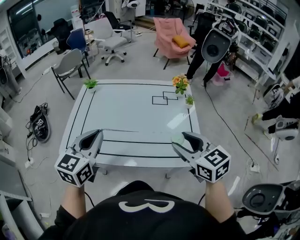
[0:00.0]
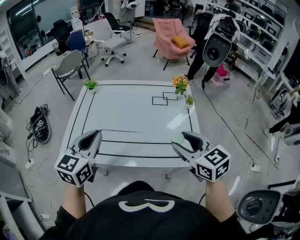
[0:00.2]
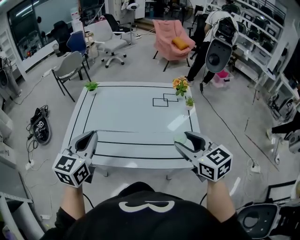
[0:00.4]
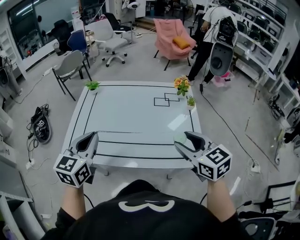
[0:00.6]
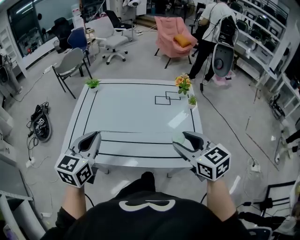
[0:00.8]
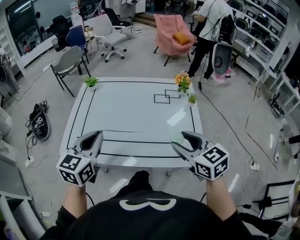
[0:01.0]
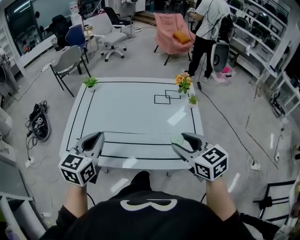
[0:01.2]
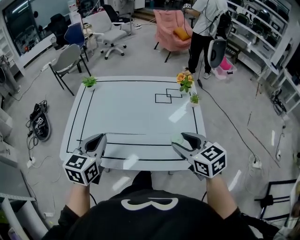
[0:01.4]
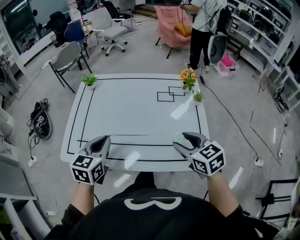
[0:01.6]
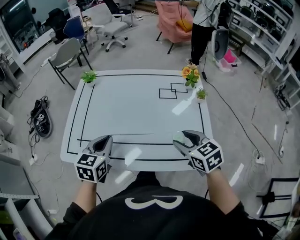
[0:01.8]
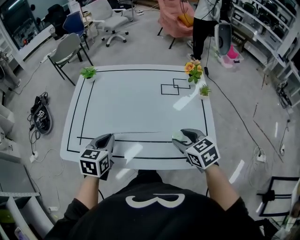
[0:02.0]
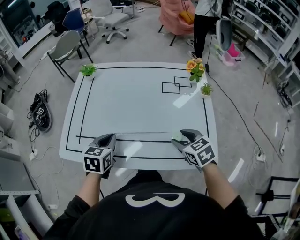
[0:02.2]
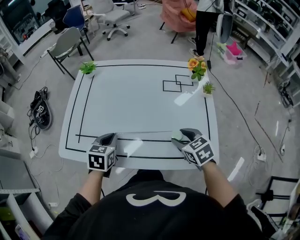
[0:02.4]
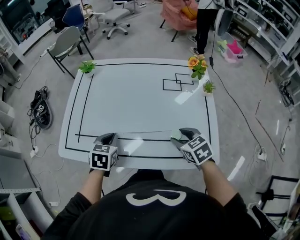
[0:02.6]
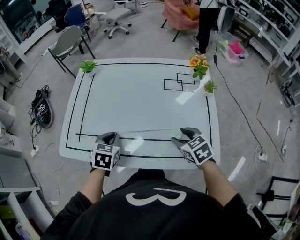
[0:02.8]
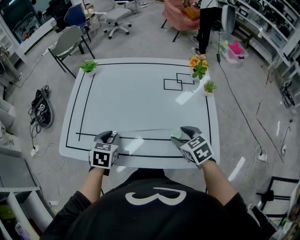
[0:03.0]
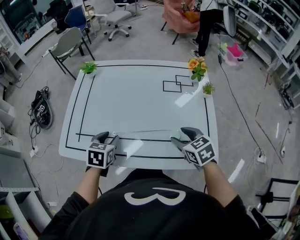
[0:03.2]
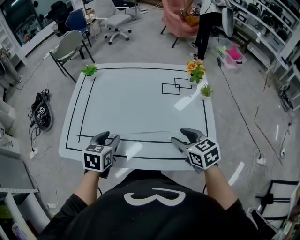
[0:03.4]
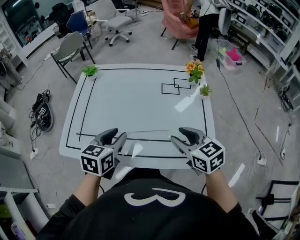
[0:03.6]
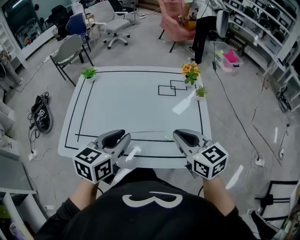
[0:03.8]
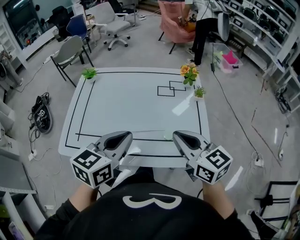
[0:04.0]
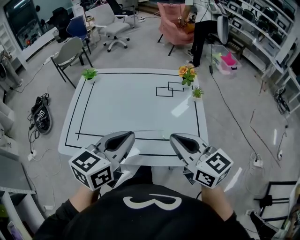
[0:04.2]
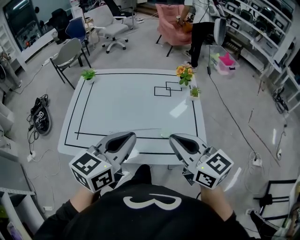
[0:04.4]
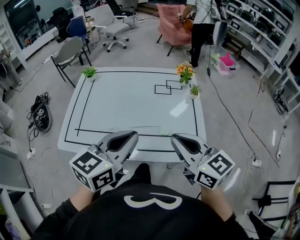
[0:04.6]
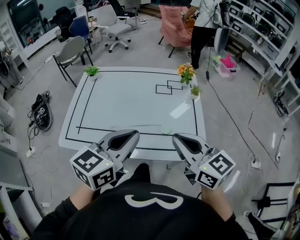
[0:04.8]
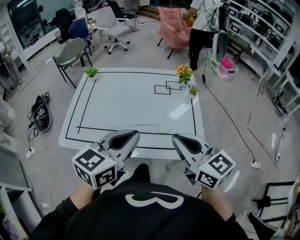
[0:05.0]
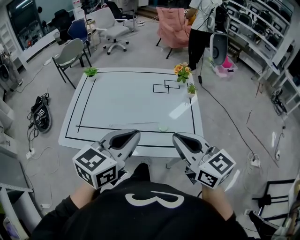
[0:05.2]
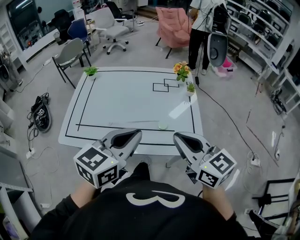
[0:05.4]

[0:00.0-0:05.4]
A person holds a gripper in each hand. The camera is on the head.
0:00.0 to 0:01.4: The grippers both shift downward by approximately 5 cm.
0:01.4 to 0:02.8: Both grippers travel together downward, roughly 15 cm. The left gripper swivels about 30 degrees.
0:02.8 to 0:04.0: The left gripper travels upward and to the right by about 25 cm, tilts its fingers approximately 30 degrees upward, and opens, then closes once more. The right gripper is displaced upward by some 20 cm, angles its fingers upward, by about 40 degrees, and closes up.
0:04.0 to 0:05.4: The grippers both shift backward by some 10 cm.

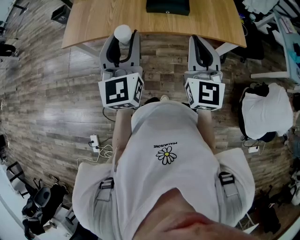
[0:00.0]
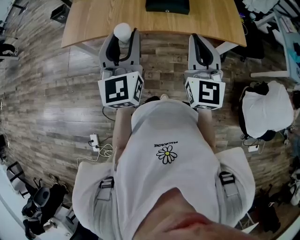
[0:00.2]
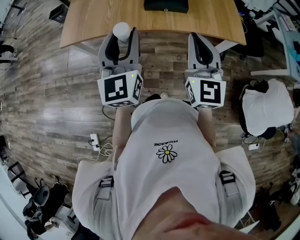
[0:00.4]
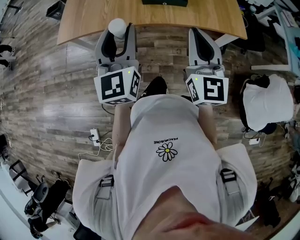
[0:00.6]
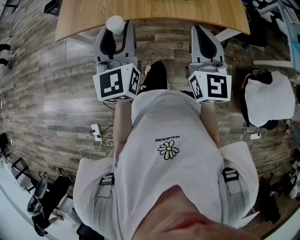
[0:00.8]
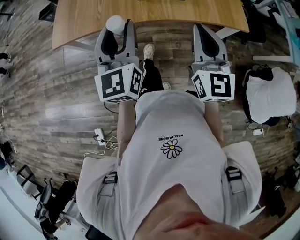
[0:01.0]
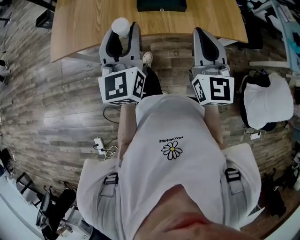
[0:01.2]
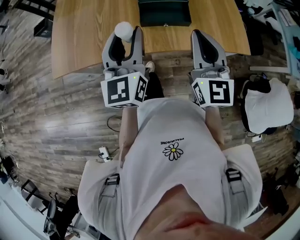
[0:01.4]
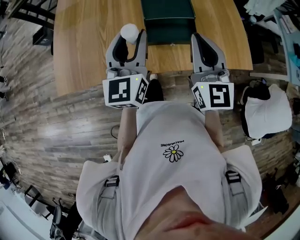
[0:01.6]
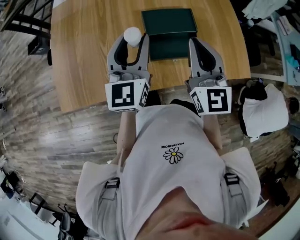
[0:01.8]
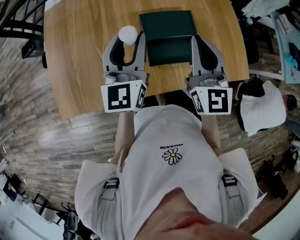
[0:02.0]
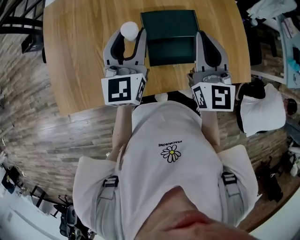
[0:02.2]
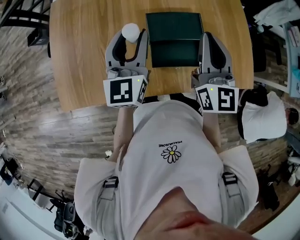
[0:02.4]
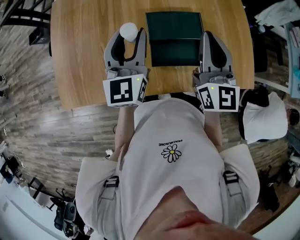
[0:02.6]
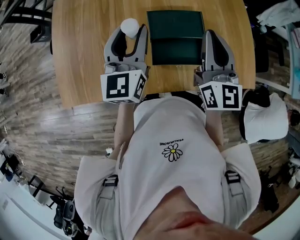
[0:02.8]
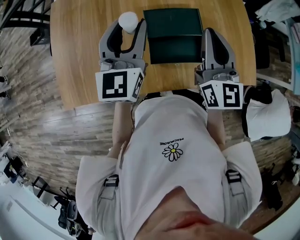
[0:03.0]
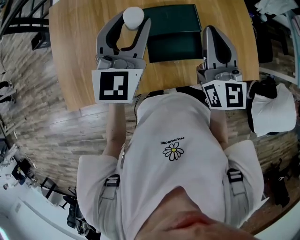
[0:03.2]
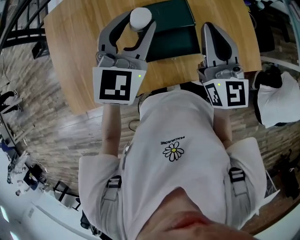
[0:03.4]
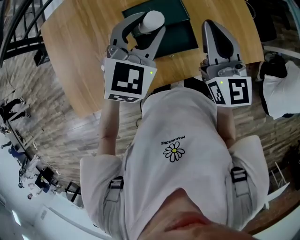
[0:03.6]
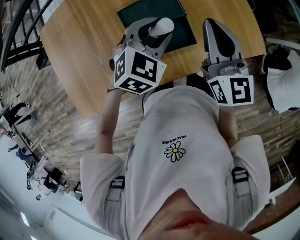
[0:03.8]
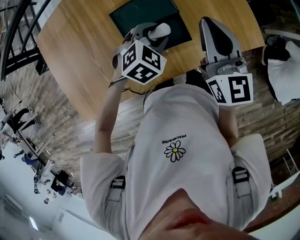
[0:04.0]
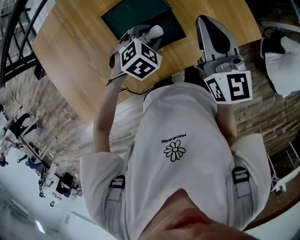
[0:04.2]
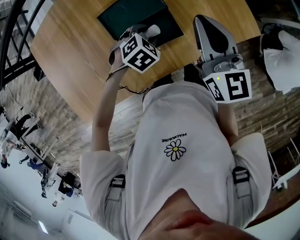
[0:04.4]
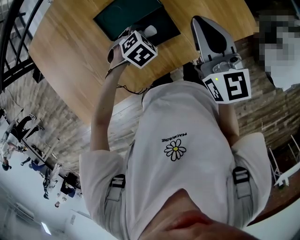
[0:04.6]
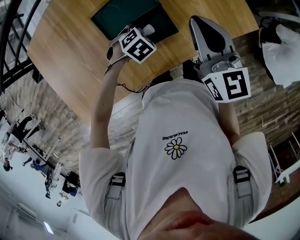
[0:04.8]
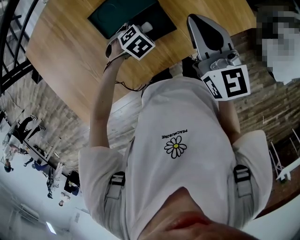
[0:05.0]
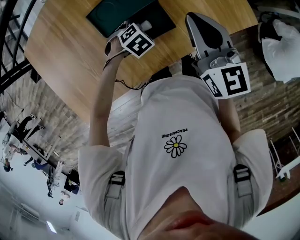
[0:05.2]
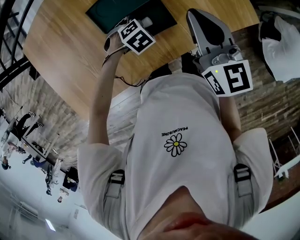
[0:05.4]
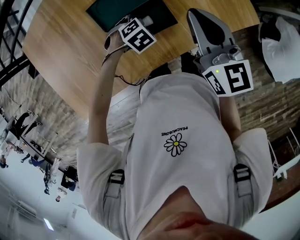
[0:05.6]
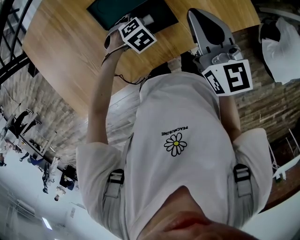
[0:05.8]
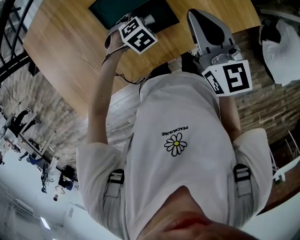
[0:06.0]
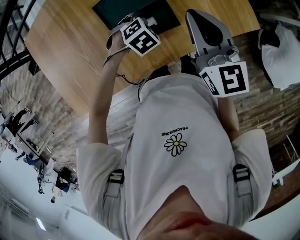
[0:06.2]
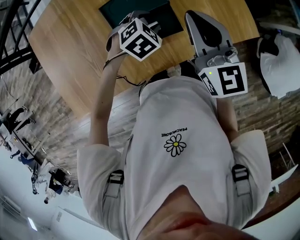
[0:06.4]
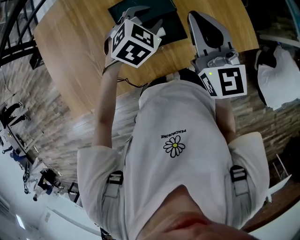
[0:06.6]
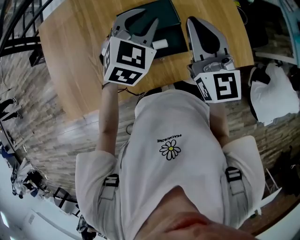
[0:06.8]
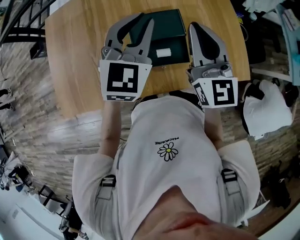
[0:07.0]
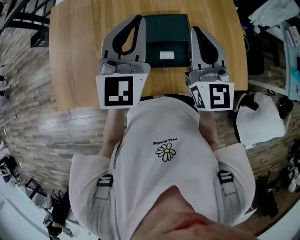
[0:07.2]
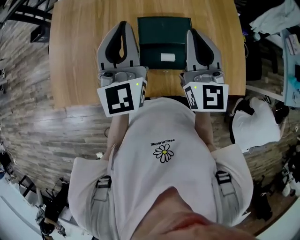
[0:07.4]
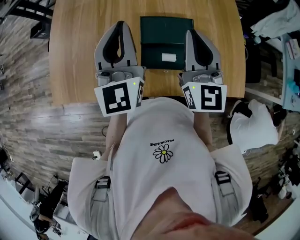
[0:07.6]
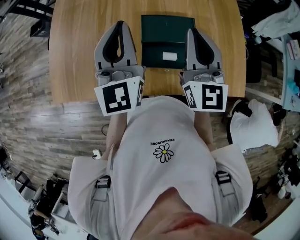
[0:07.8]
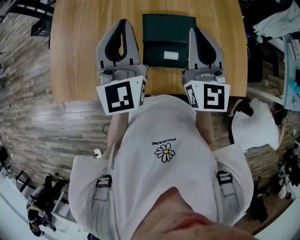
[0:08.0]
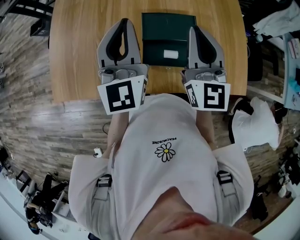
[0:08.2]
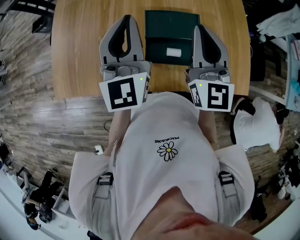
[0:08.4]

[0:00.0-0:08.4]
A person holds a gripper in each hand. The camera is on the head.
0:00.0 to 0:01.4: Both grippers travel together forward, about 15 cm.
0:01.4 to 0:02.8: The grippers both shift forward by about 25 cm.
0:02.8 to 0:04.2: The left gripper is displaced downward by about 20 cm, and tilts its fingers some 60 degrees downward. The right gripper ends up about 15 cm from where it was.
0:04.2 to 0:05.6: The left gripper is displaced downward by about 10 cm.
0:05.6 to 0:07.0: The left gripper is displaced upward by approximately 35 cm, angles its fingers upward, by some 60 degrees, and closes. The right gripper is displaced upward by some 10 cm, and swivels some 20 degrees.
0:07.0 to 0:08.4: The left gripper moves to the left, roughly 10 cm, and swivels about 40 degrees. The right gripper travels to the left by some 5 cm.

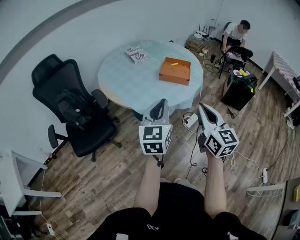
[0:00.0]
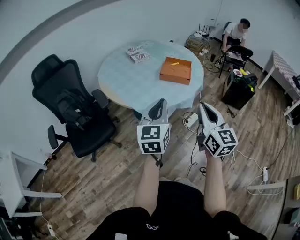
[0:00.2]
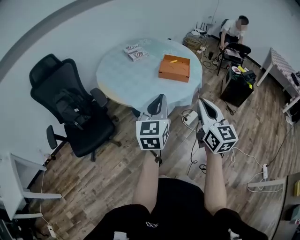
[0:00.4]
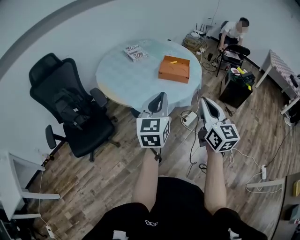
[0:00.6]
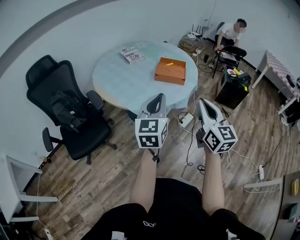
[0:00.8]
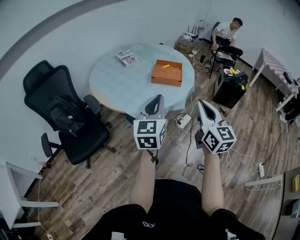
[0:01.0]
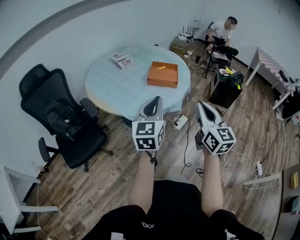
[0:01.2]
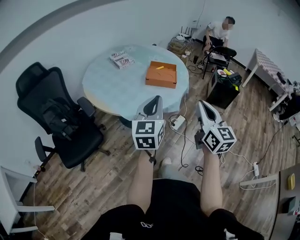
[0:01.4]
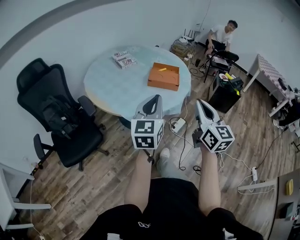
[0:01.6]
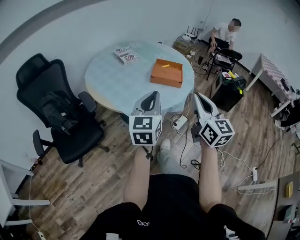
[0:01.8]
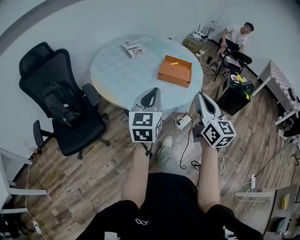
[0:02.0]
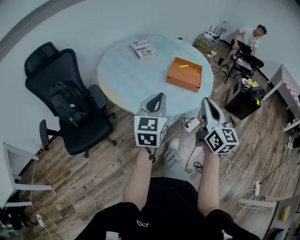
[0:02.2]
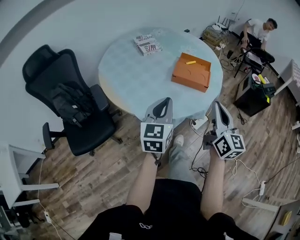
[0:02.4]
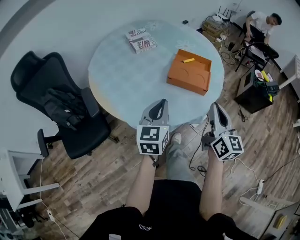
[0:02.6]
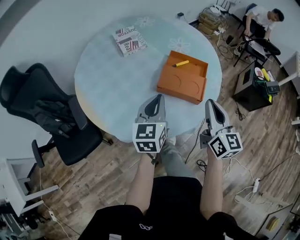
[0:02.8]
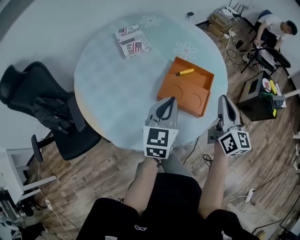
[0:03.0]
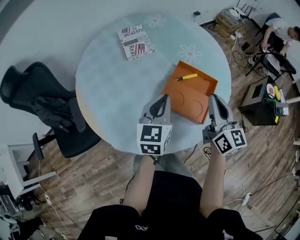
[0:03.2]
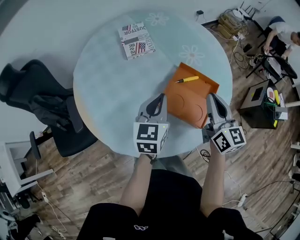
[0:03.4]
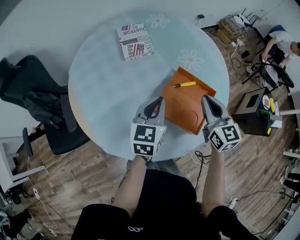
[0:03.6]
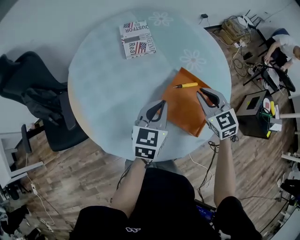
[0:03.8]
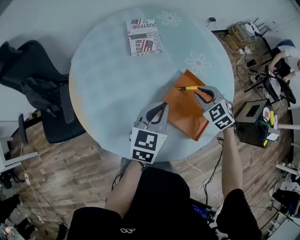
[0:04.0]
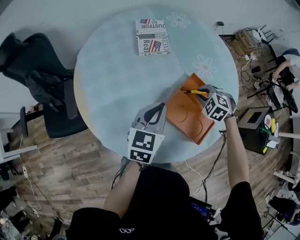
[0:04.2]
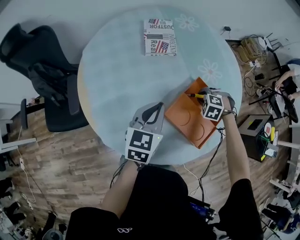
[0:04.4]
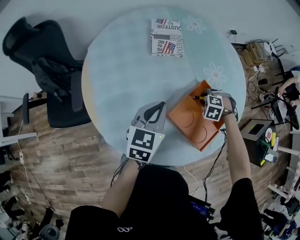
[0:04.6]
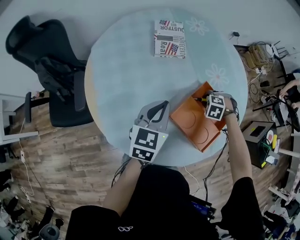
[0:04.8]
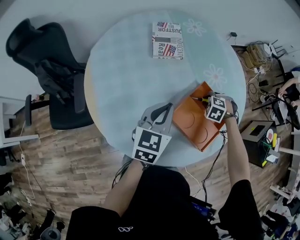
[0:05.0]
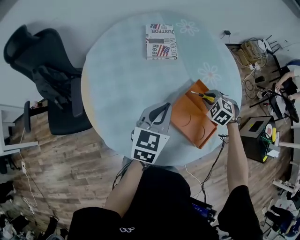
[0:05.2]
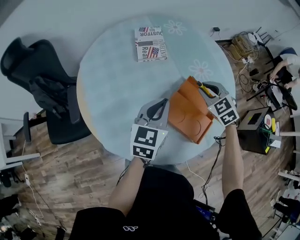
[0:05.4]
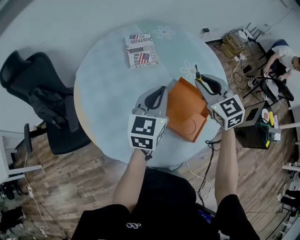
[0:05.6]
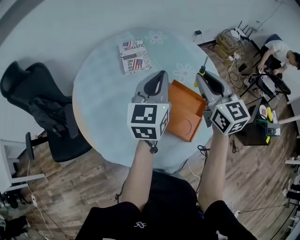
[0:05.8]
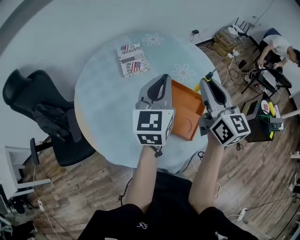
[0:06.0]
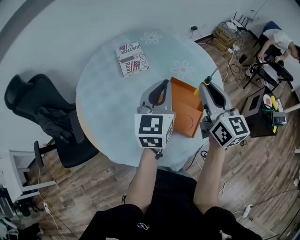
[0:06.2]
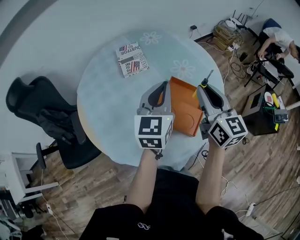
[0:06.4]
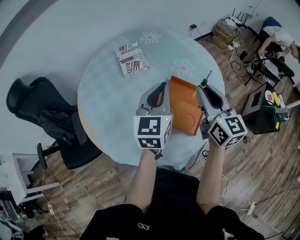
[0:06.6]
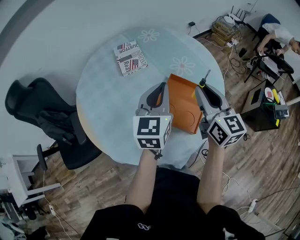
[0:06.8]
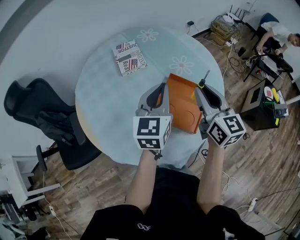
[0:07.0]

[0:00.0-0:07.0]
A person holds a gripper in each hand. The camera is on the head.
0:00.0 to 0:01.4: The grippers stay close to where they were, moving slightly.
0:01.4 to 0:02.8: The right gripper shifts roughly 40 cm forward; the left gripper heads forward and downward, covering approximately 40 cm.
0:02.8 to 0:04.2: The left gripper goes approximately 15 cm forward; the right gripper moves forward and downward, some 35 cm, and angles its fingers downward, by about 60 degrees.
0:04.2 to 0:05.6: The left gripper is displaced upward by some 10 cm. The right gripper heads upward, covering roughly 20 cm, and tilts its fingers approximately 40 degrees upward.
0:05.6 to 0:07.0: The left gripper moves to the right, approximately 5 cm; the right gripper travels backward and to the right by about 10 cm, and turns by roughly 40 degrees.

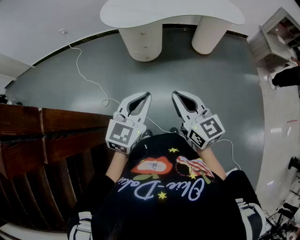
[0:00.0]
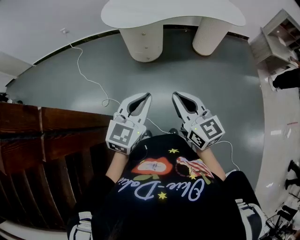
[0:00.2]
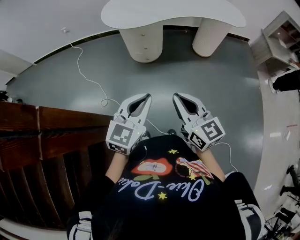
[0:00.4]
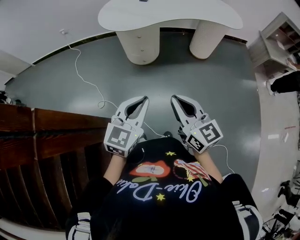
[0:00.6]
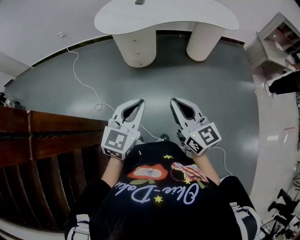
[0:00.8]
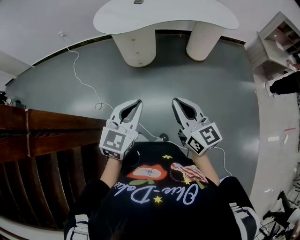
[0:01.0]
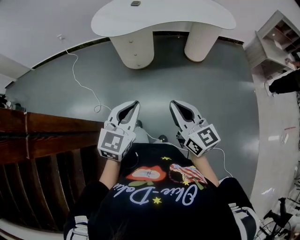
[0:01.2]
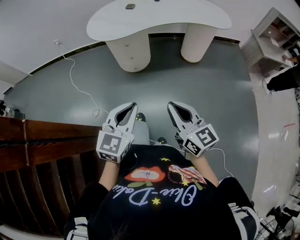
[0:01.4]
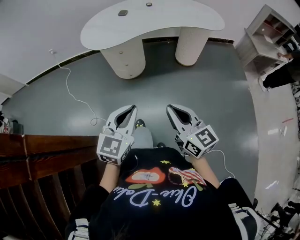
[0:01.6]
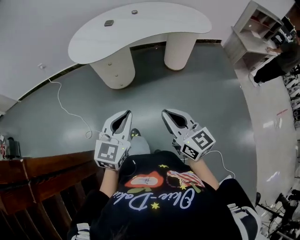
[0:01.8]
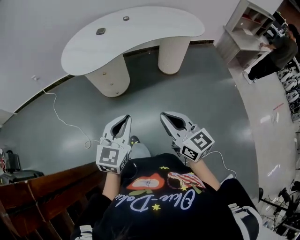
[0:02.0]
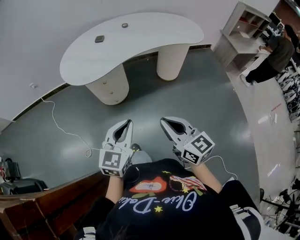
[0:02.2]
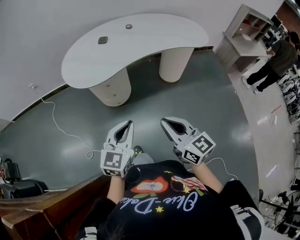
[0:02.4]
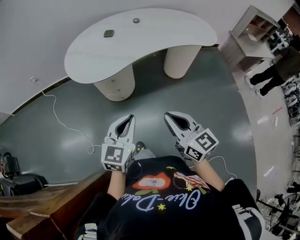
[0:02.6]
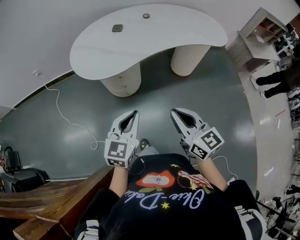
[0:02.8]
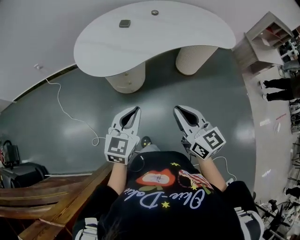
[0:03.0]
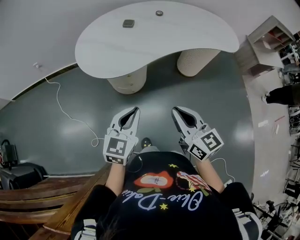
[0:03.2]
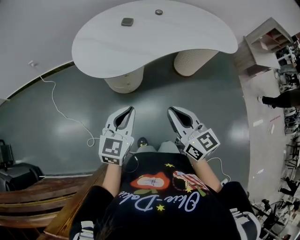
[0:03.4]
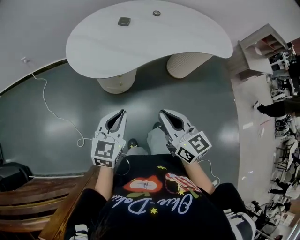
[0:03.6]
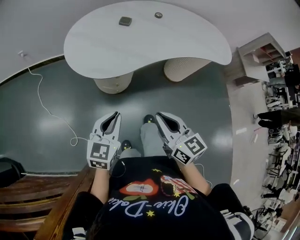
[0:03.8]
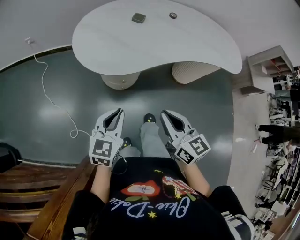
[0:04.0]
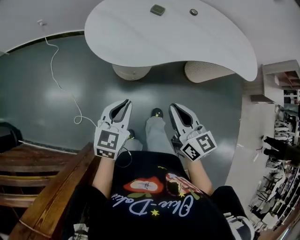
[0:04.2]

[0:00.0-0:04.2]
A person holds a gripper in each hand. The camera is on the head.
0:00.0 to 0:01.4: Both grippers move to the right, approximately 10 cm.
0:01.4 to 0:02.8: Both grippers travel together forward, roughly 25 cm.
0:02.8 to 0:04.2: The grippers both shift forward, to the left and downward by some 20 cm.
